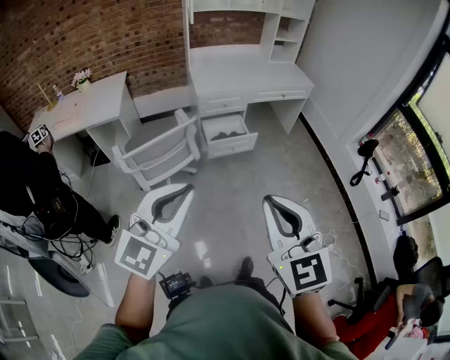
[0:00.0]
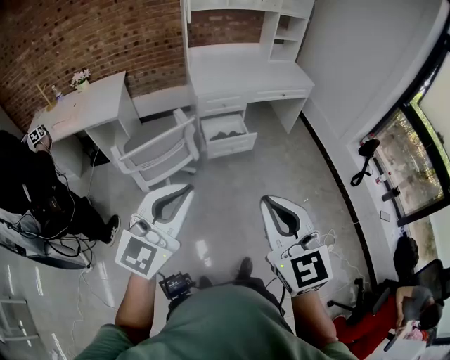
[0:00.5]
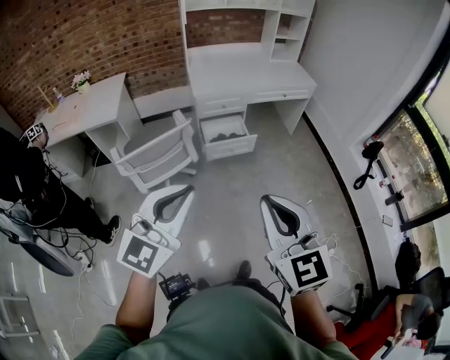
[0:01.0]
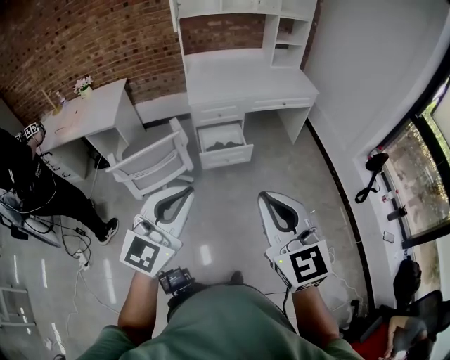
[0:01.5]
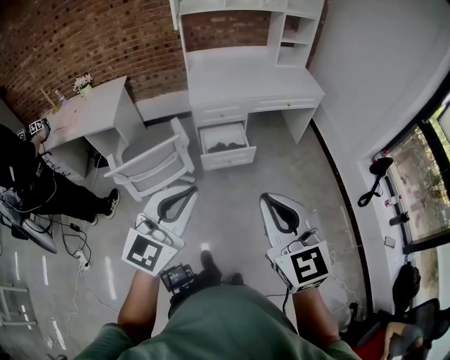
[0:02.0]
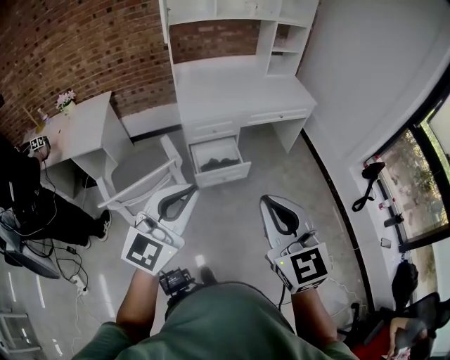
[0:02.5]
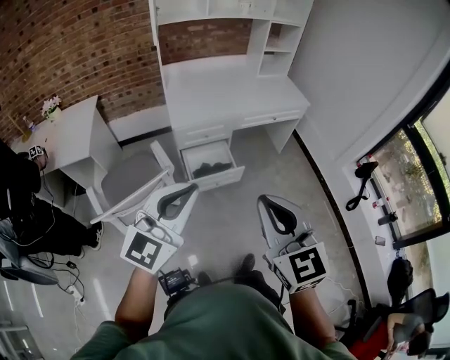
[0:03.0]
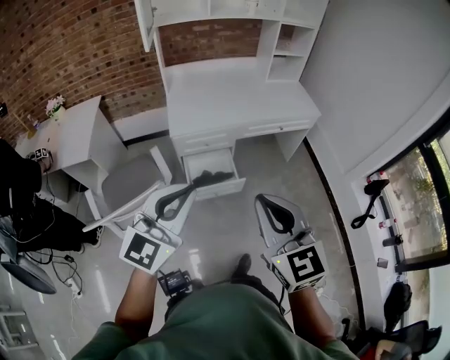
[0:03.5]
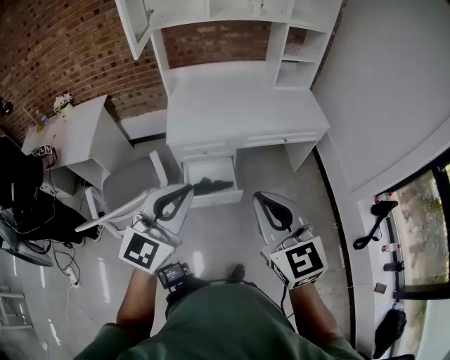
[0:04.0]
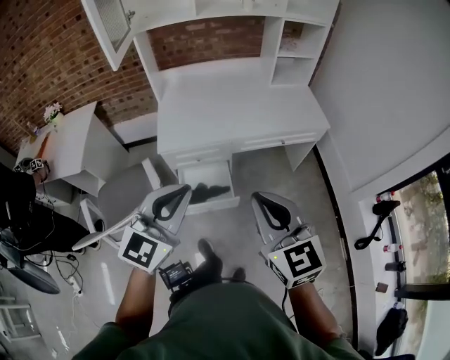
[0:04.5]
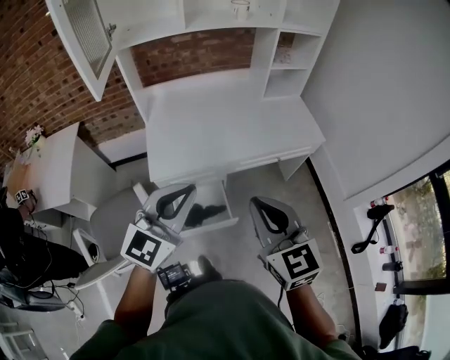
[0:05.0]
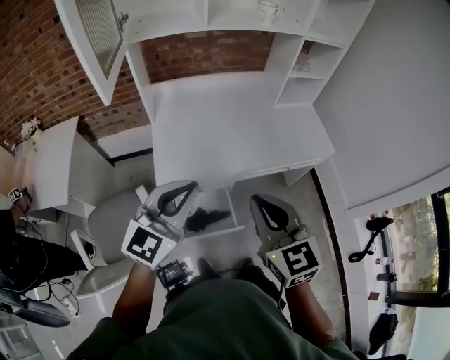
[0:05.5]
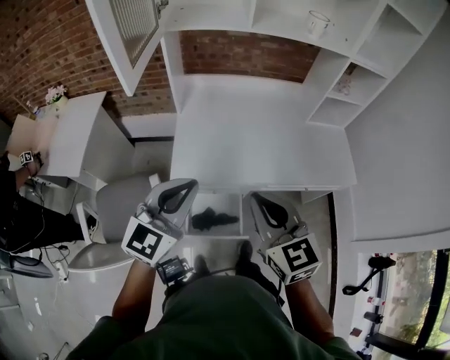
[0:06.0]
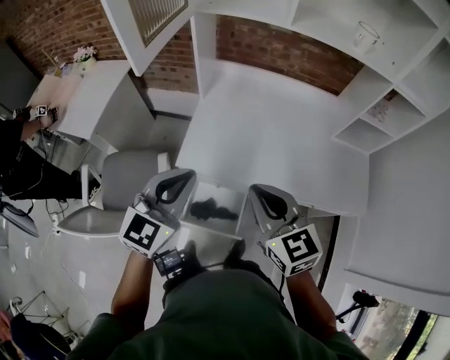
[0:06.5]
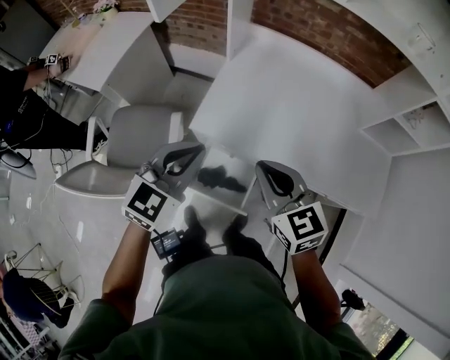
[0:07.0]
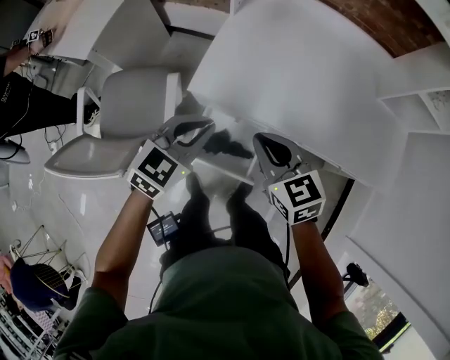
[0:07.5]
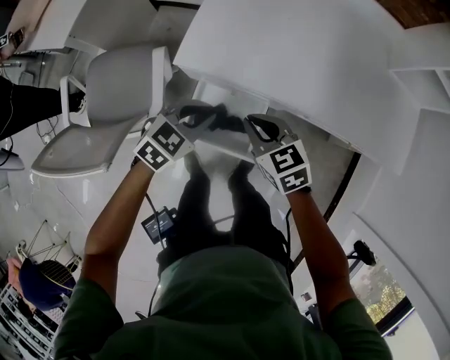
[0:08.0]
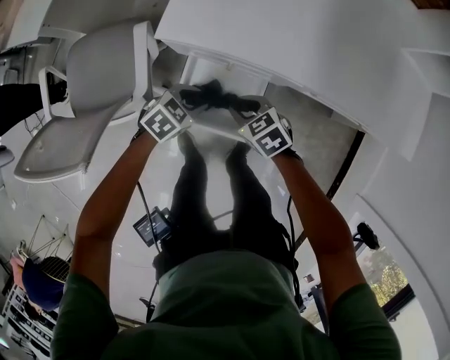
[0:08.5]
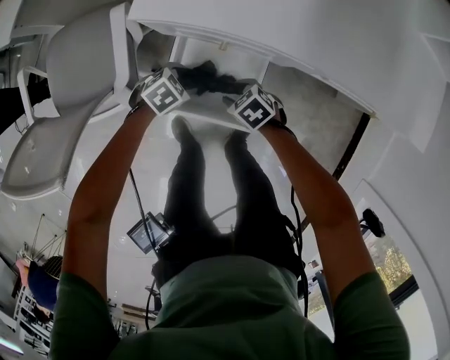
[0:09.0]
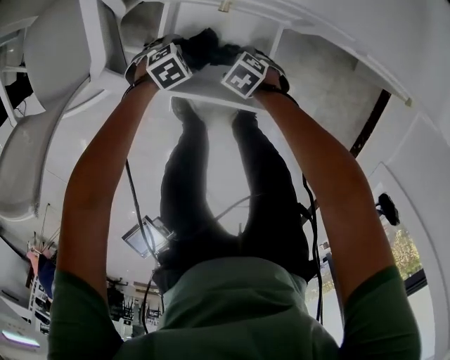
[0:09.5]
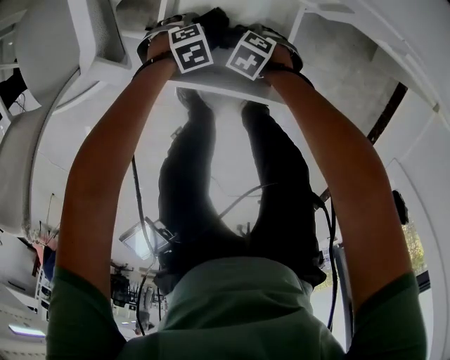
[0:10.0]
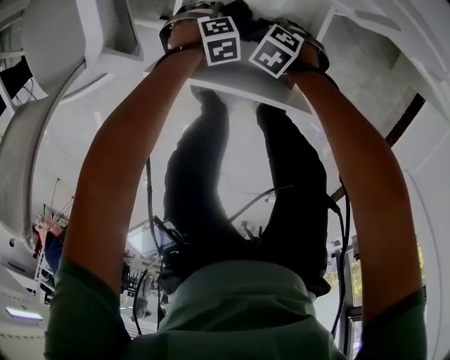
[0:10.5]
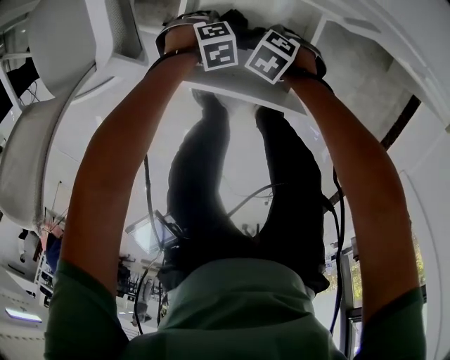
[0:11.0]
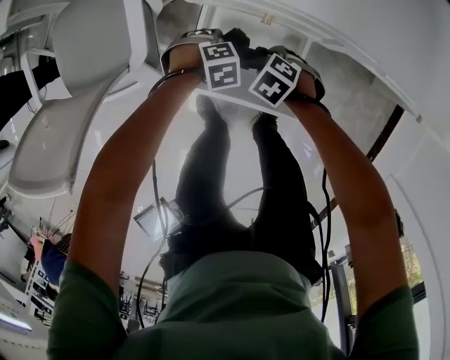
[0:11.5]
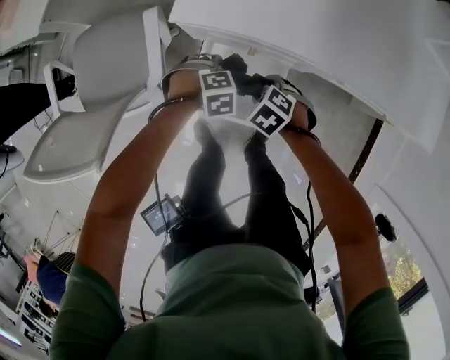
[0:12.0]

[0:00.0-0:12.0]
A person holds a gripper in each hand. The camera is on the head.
0:00.0 to 0:02.0: Both grippers travel together forward and to the right, some 25 cm.
0:02.0 to 0:04.0: Both grippers travel together forward, approximately 40 cm.
0:04.0 to 0:06.0: Both grippers travel together forward, about 35 cm.
0:06.0 to 0:08.0: The grippers both shift downward by roughly 40 cm. The right gripper rotates some 40 degrees; the left gripper points its fingers some 30 degrees further downward.
0:08.0 to 0:10.0: Both grippers travel together downward, some 50 cm. The right gripper angles its fingers downward, by some 40 degrees, and opens up. The left gripper tips its fingers downward by some 40 degrees, and opens.
0:10.0 to 0:12.0: Both grippers travel together upward, approximately 30 cm. The right gripper closes up.

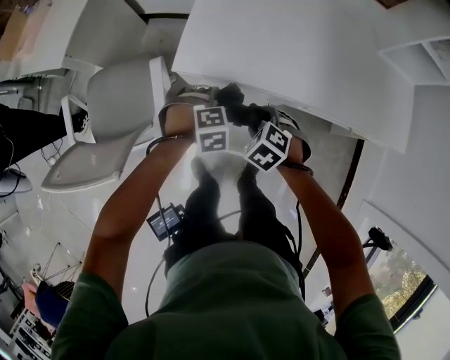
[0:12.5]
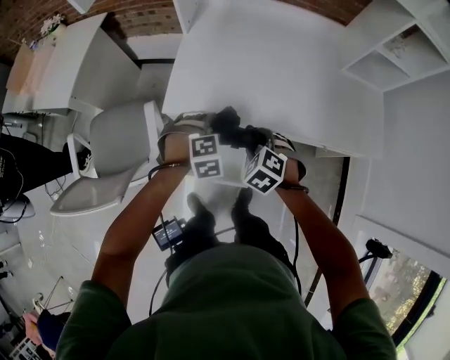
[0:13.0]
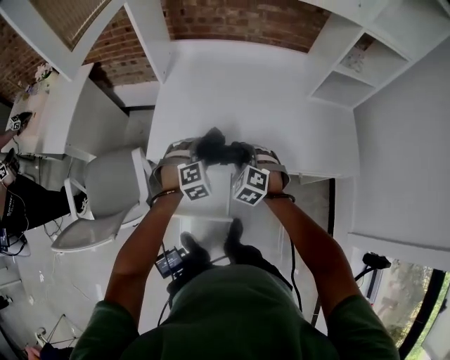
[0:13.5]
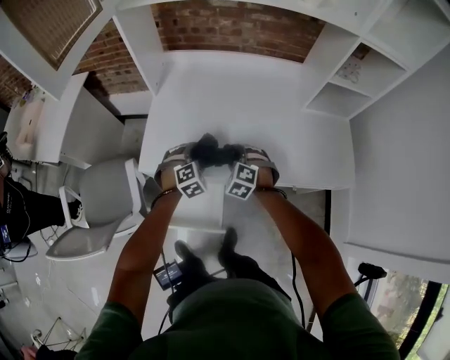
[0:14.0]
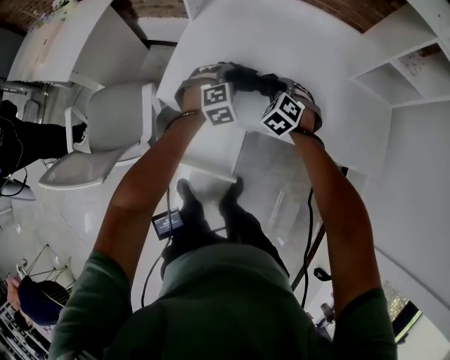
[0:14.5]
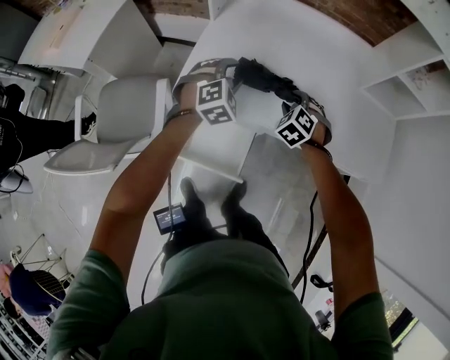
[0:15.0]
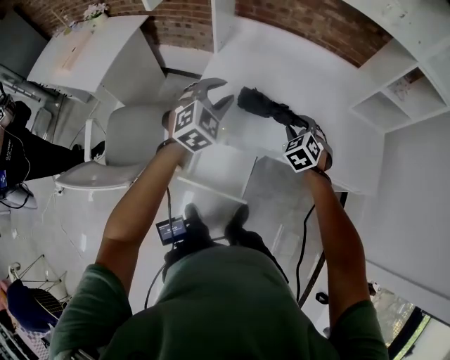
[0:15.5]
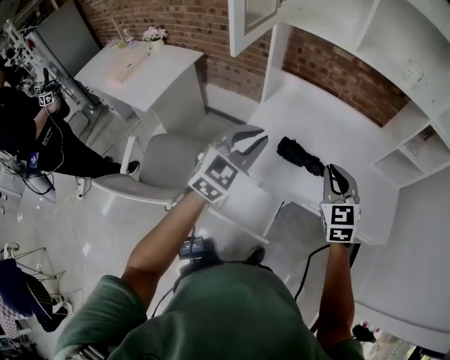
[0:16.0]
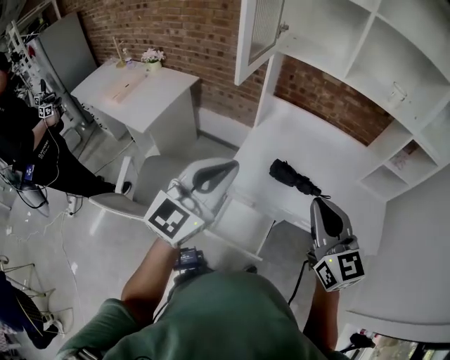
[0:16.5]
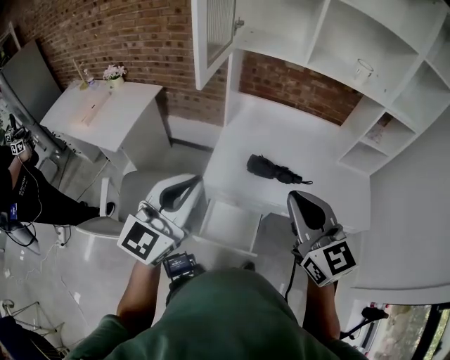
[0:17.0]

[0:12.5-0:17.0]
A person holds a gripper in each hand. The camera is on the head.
0:12.5 to 0:14.5: The right gripper moves some 25 cm, and turns by about 20 degrees; the left gripper shifts by approximately 25 cm, and swivels some 30 degrees.
0:14.5 to 0:17.0: The left gripper heads upward, backward and to the left, covering roughly 60 cm, angles its fingers upward, by roughly 50 degrees, and closes up, while the right gripper is displaced upward and backward by about 50 cm, points its fingers roughly 50 degrees further upward, and closes up.

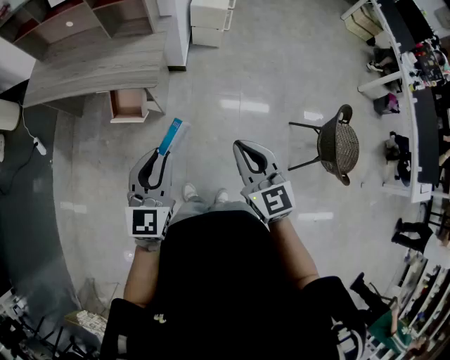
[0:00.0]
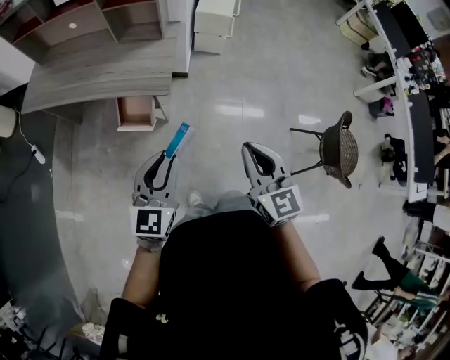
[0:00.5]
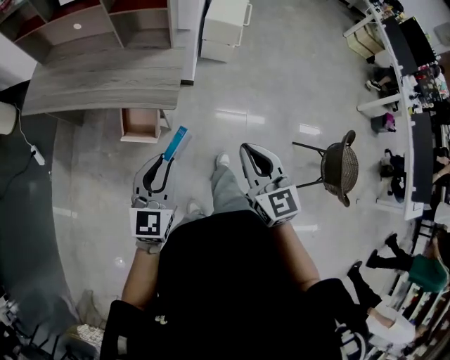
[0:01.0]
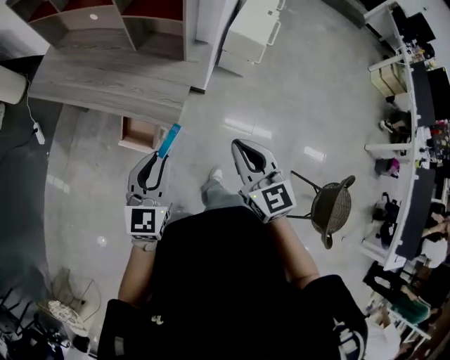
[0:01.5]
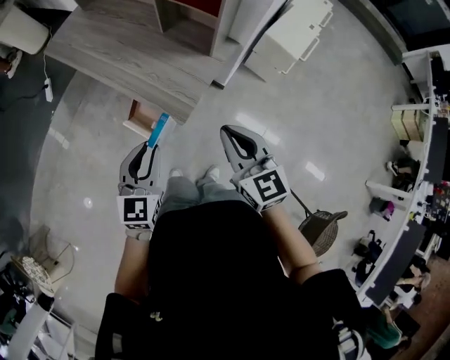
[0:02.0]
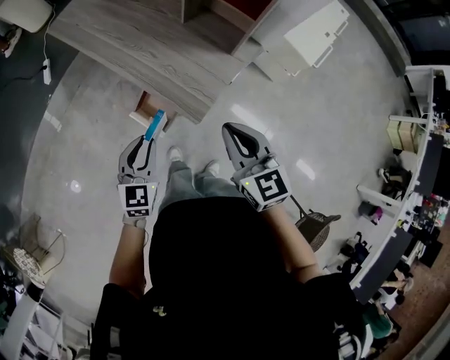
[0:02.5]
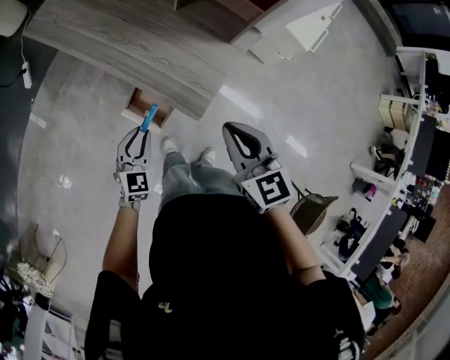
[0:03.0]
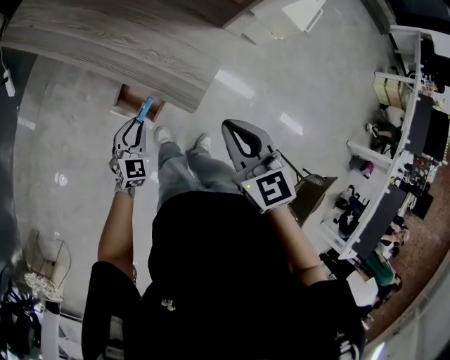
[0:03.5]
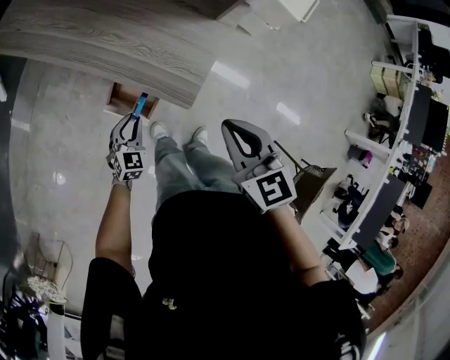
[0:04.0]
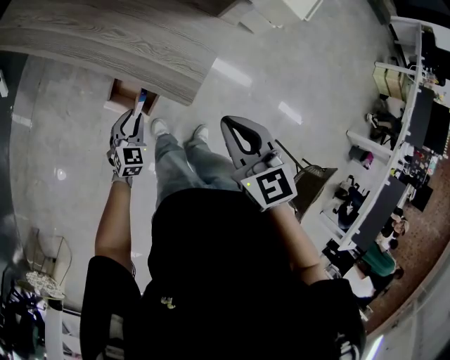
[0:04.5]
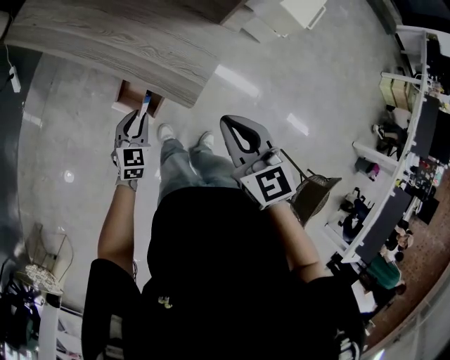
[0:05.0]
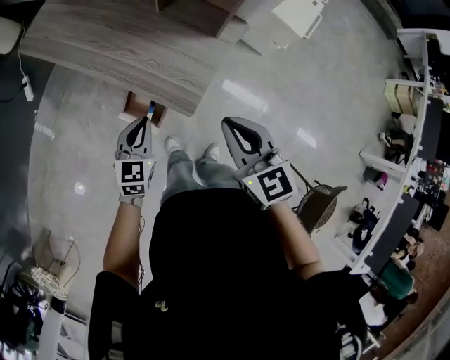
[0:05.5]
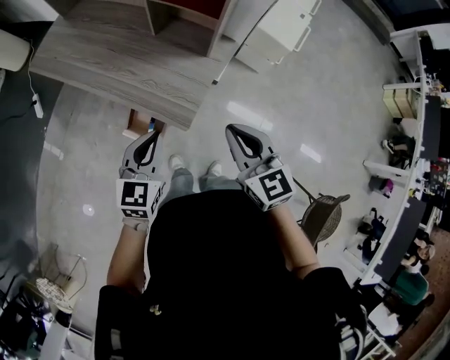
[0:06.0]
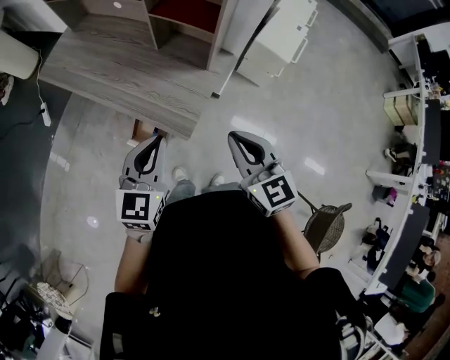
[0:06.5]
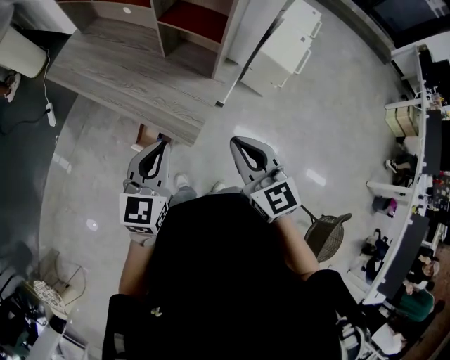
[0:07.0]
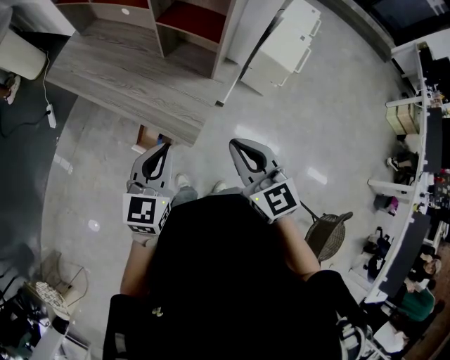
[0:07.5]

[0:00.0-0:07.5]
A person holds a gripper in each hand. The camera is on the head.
0:00.0 to 0:02.0: The left gripper changes place by some 25 cm, and swivels approximately 30 degrees. Meanwhile the right gripper changes place by roughly 35 cm, and swivels approximately 30 degrees.
0:02.0 to 0:04.0: The left gripper heads downward, covering approximately 30 cm, and changes its angle by some 20 degrees; the right gripper travels to the left, downward and forward by roughly 15 cm.
0:04.0 to 0:05.5: The right gripper shifts approximately 5 cm upward. Meanwhile the left gripper moves upward, some 20 cm.
0:05.5 to 0:07.5: The left gripper is displaced upward and to the right by about 20 cm. Meanwhile the right gripper heads upward, covering roughly 10 cm.

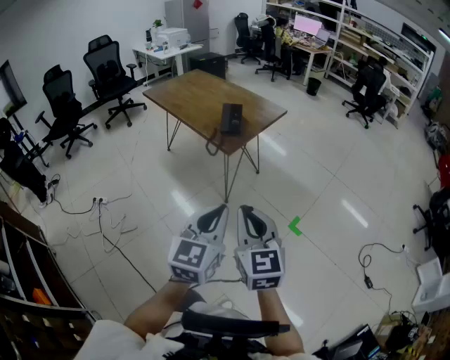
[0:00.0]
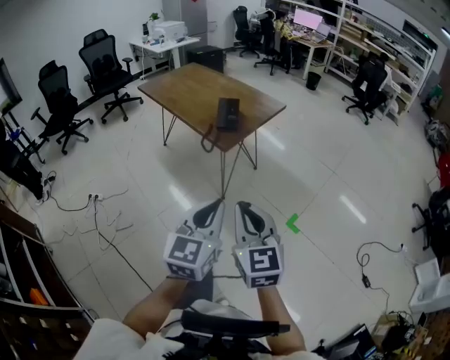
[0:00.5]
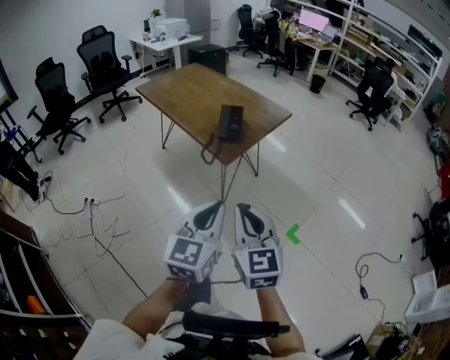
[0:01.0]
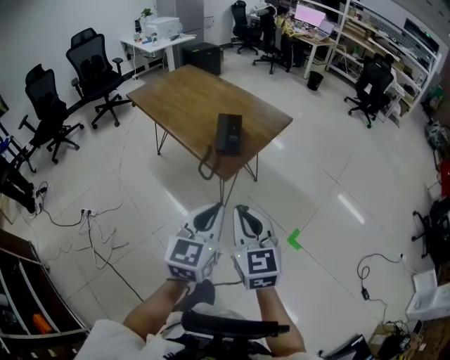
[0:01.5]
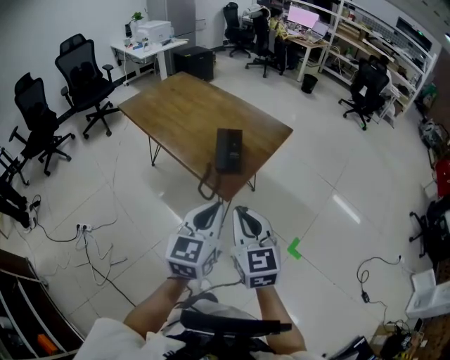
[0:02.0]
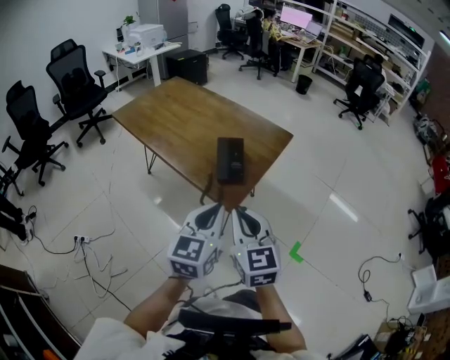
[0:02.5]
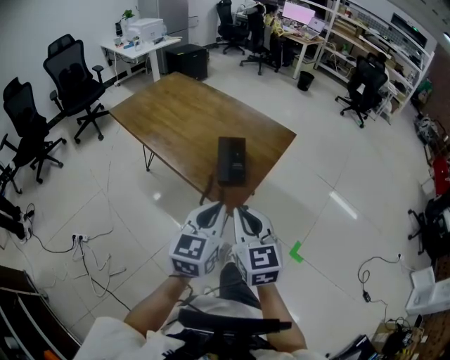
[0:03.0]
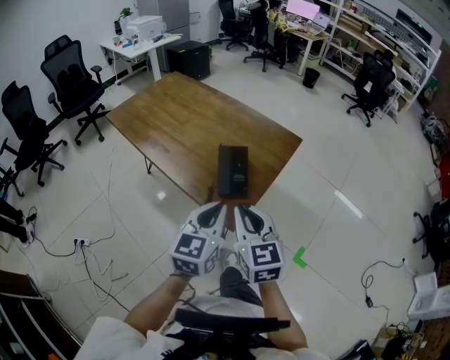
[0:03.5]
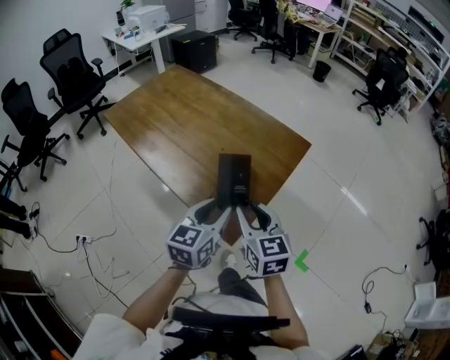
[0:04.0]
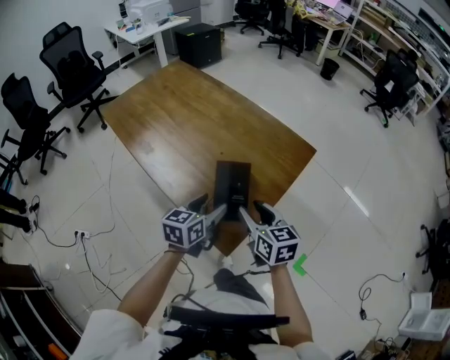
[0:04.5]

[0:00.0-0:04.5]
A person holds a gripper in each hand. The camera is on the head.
0:00.0 to 0:02.0: Both grippers travel together forward, approximately 30 cm.
0:02.0 to 0:04.5: Both grippers travel together forward and downward, approximately 30 cm. The left gripper changes its angle by approximately 20 degrees, and opens up. The right gripper swivels roughly 30 degrees, and opens up.
